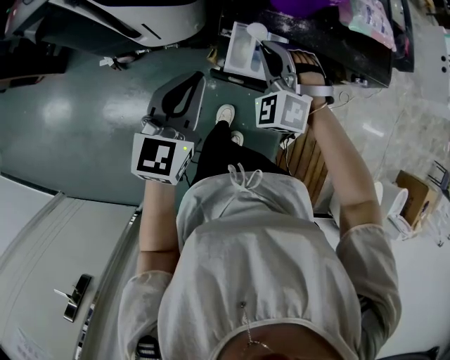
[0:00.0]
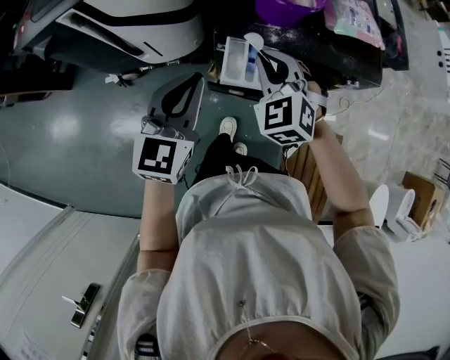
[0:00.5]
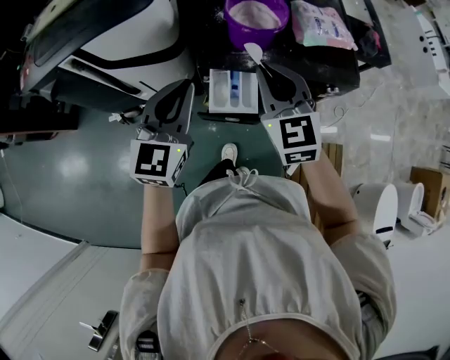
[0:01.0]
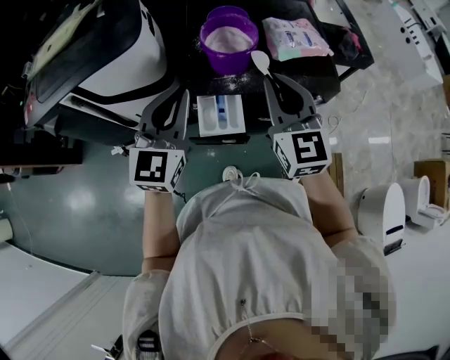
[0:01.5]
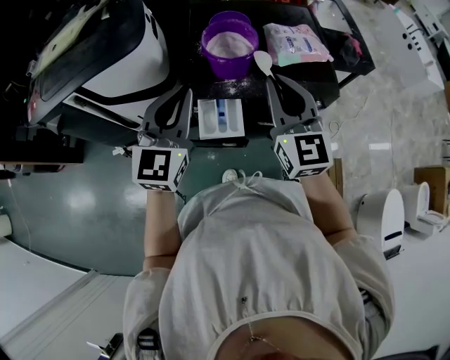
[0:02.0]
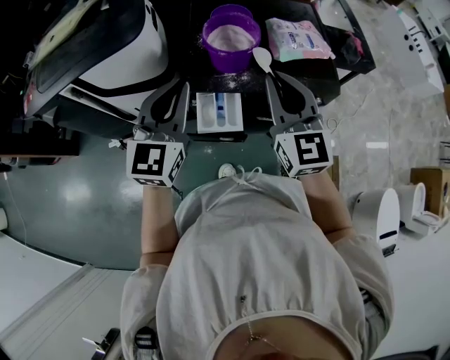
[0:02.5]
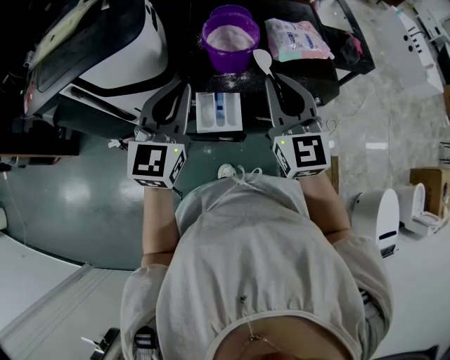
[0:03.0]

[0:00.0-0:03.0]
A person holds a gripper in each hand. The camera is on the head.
0:00.0 to 0:01.5: The left gripper is displaced upward, forward and to the right by approximately 20 cm, and swivels approximately 20 degrees, while the right gripper heads upward and to the right, covering roughly 25 cm, and twists some 60 degrees clockwise, seen from behind.
0:01.5 to 0:03.0: The grippers stay close to where they were, moving slightly.

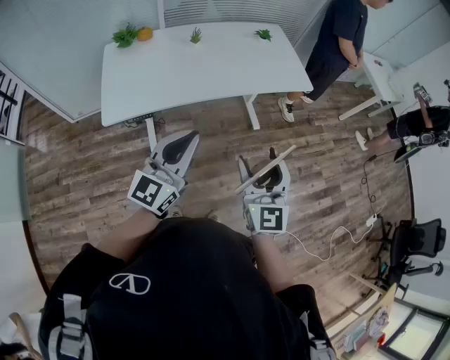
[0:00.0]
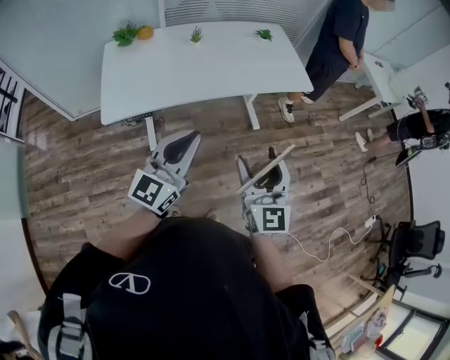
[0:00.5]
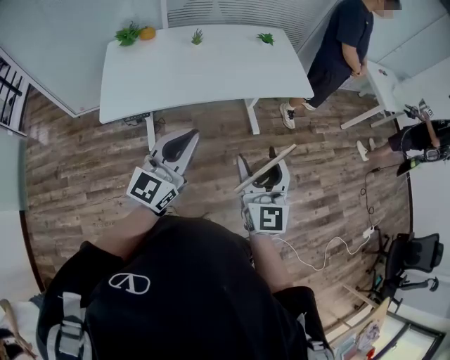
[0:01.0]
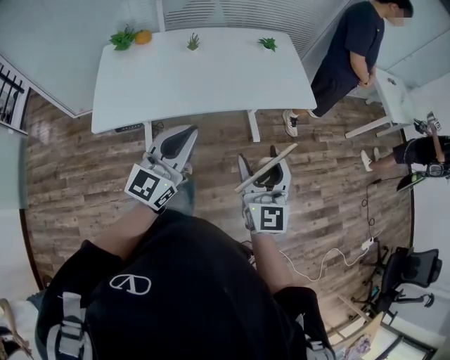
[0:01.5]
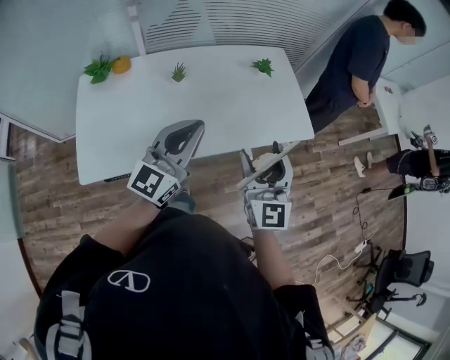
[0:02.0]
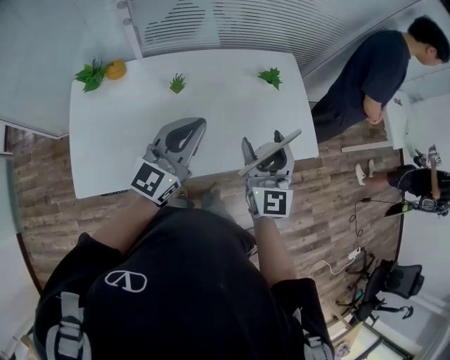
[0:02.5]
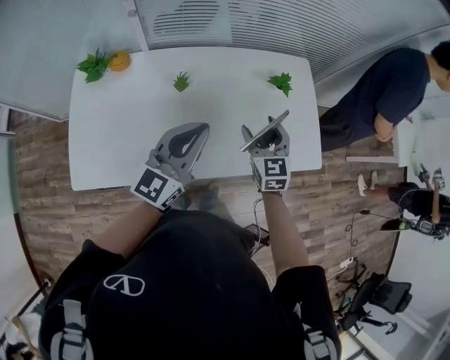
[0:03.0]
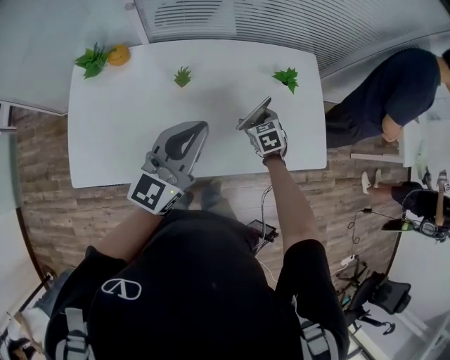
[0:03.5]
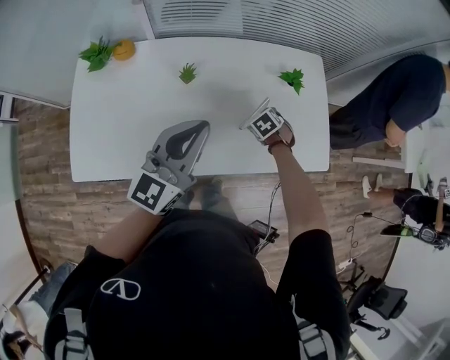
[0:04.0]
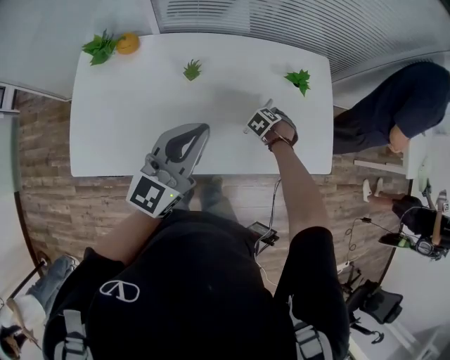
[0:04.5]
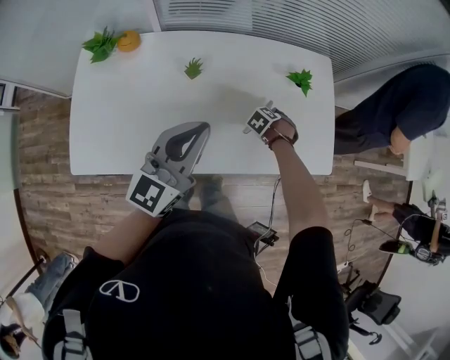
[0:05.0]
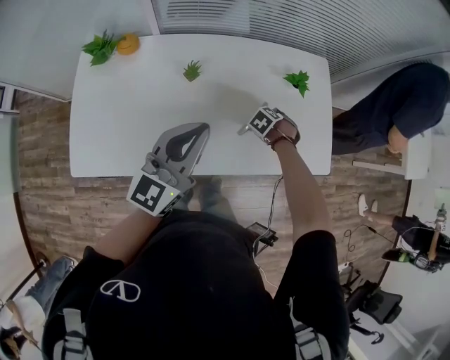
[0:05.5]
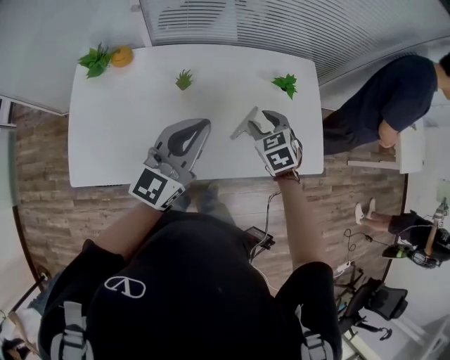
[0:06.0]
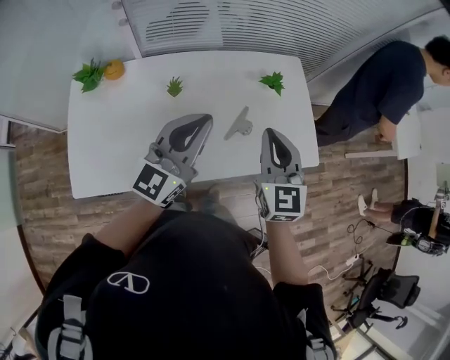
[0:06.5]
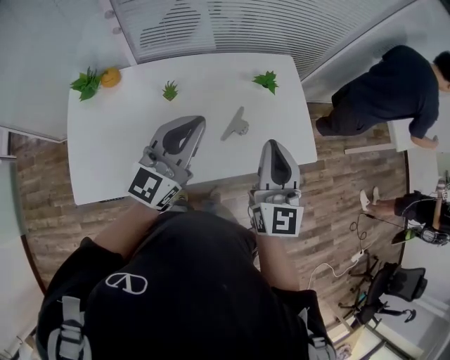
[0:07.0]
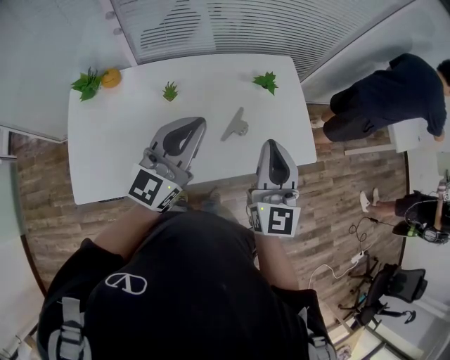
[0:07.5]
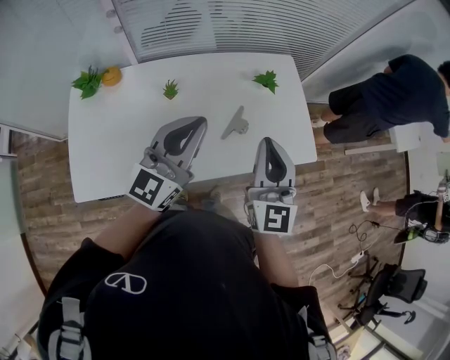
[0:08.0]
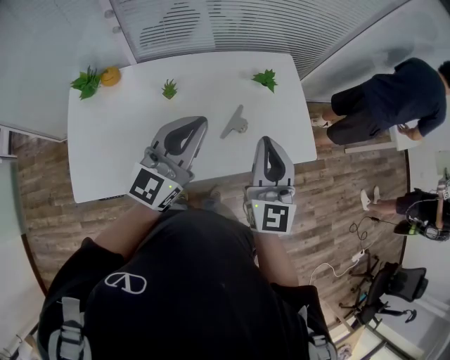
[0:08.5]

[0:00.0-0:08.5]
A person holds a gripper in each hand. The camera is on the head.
0:00.0 to 0:02.0: Both grippers travel together forward, approximately 35 cm.
0:02.0 to 0:04.0: The left gripper changes place by approximately 15 cm; the right gripper travels downward by about 35 cm, and points its fingers approximately 80 degrees further downward.
0:04.0 to 0:06.5: The right gripper moves upward, roughly 35 cm, tips its fingers upward by some 70 degrees, and closes up.
0:06.5 to 0:08.5: The right gripper changes place by about 5 cm.

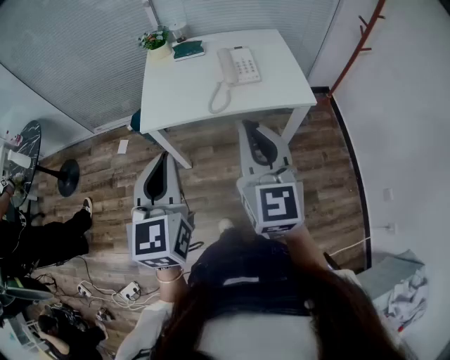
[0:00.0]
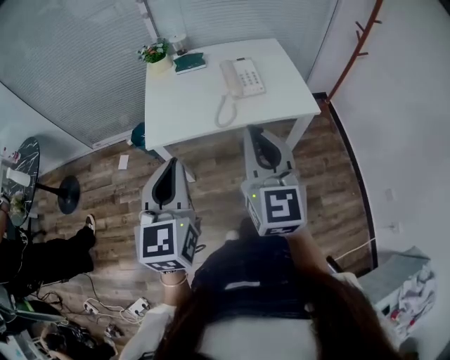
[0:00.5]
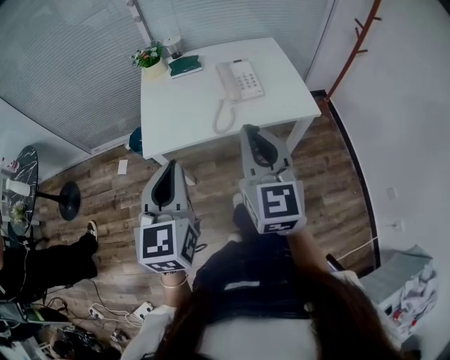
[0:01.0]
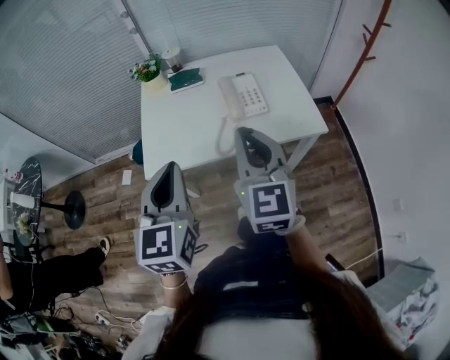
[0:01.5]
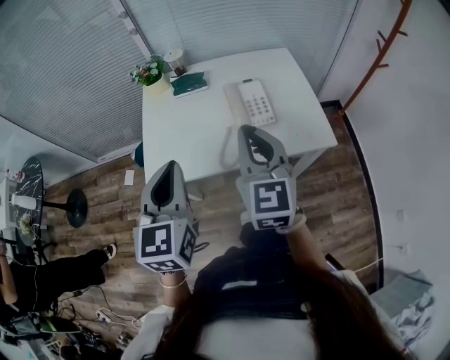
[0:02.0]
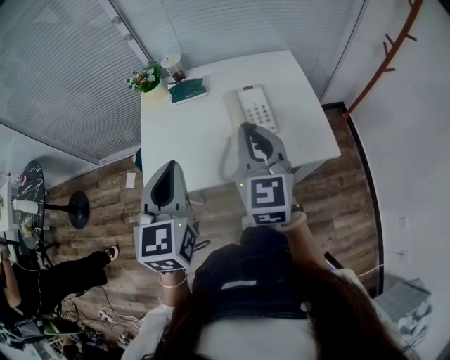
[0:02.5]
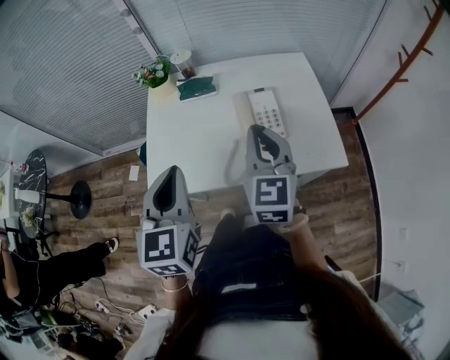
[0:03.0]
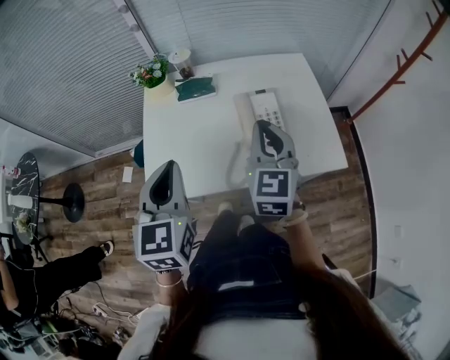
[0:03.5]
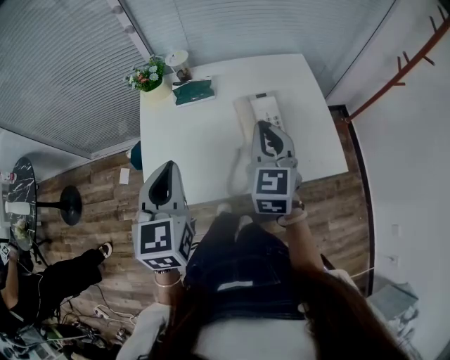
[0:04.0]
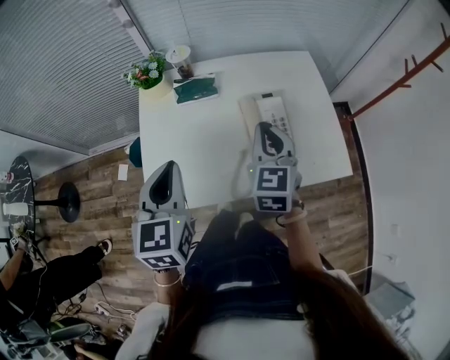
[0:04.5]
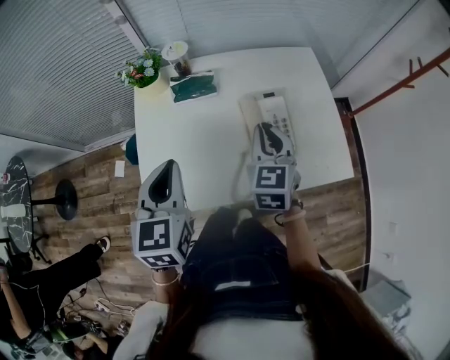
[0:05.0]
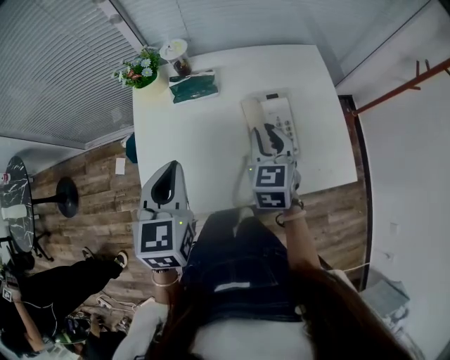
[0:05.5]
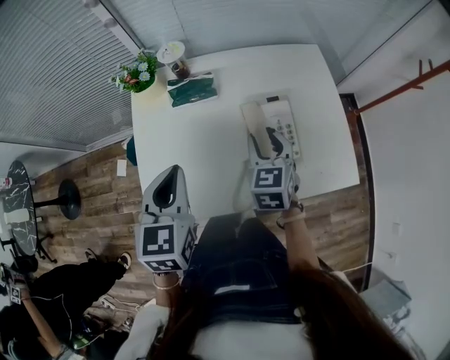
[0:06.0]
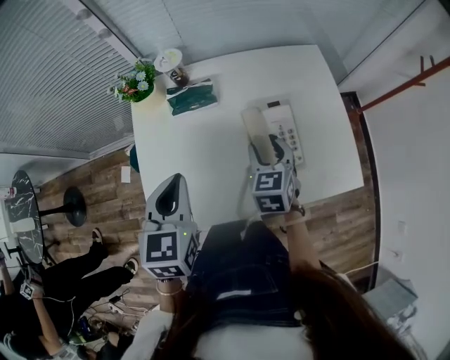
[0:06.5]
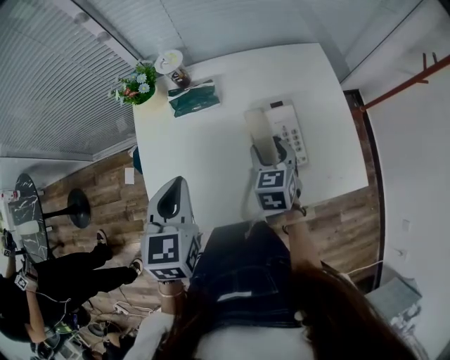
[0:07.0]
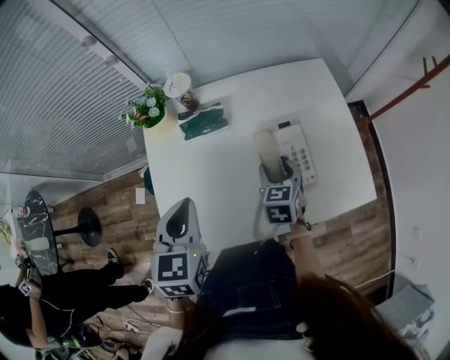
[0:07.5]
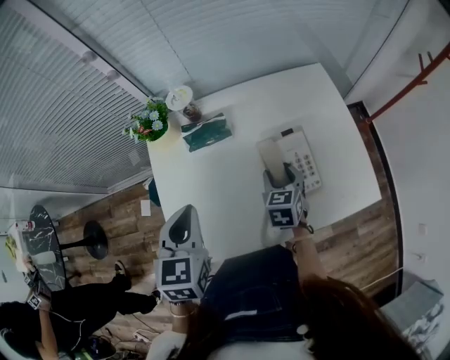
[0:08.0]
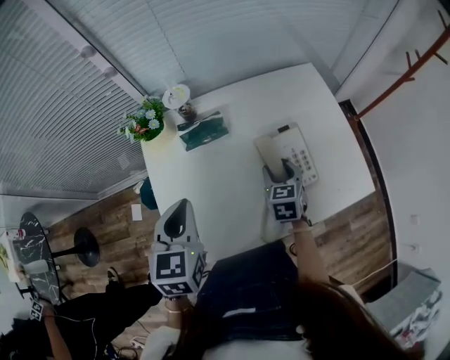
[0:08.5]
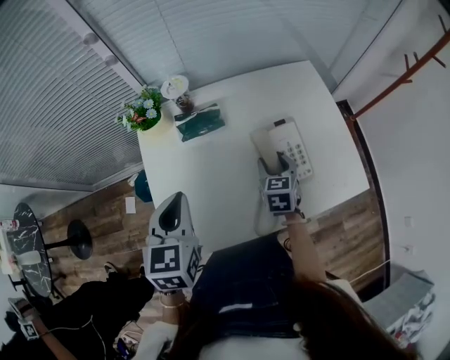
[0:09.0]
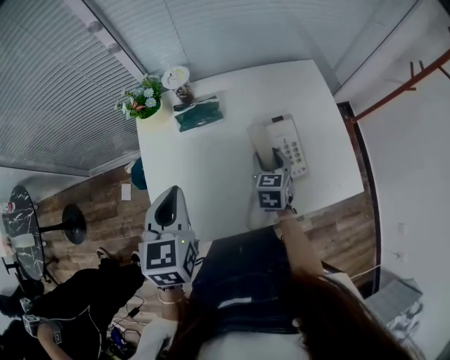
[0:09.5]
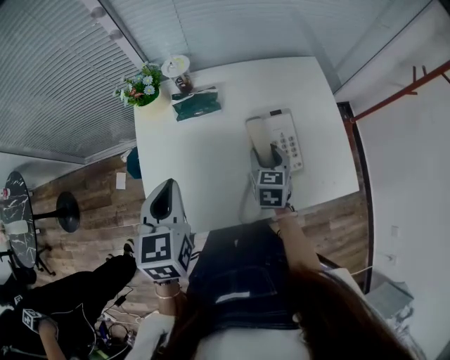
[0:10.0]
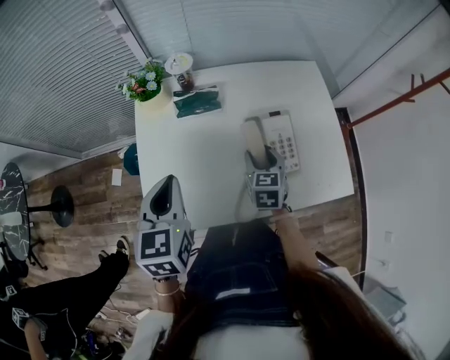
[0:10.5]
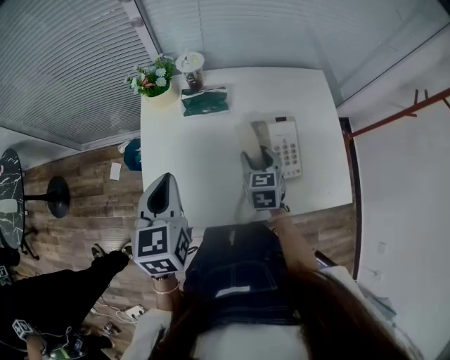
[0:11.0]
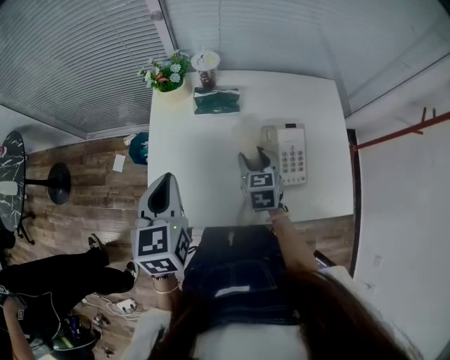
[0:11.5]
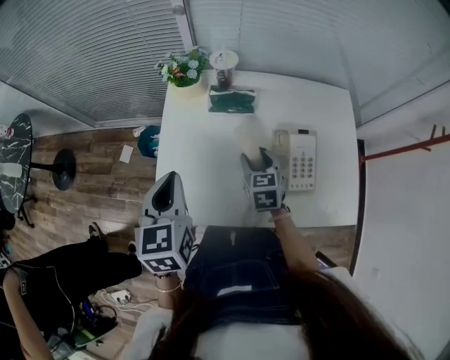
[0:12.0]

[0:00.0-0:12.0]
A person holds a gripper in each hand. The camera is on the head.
0:00.0 to 0:02.0: The two grippers go approximately 25 cm forward.
0:02.0 to 0:04.0: The left gripper goes approximately 15 cm forward, while the right gripper heads forward and downward, covering some 15 cm.
0:04.0 to 0:06.0: The left gripper travels forward and downward by approximately 10 cm. The right gripper travels downward and forward by approximately 15 cm, and opens.
0:06.0 to 0:08.0: The right gripper heads downward, covering some 10 cm.
0:08.0 to 0:10.0: The grippers stay close to where they were, moving slightly.
0:10.0 to 0:12.0: The right gripper heads to the left, covering some 10 cm, and swivels some 20 degrees, while the left gripper moves to the left, roughly 5 cm.

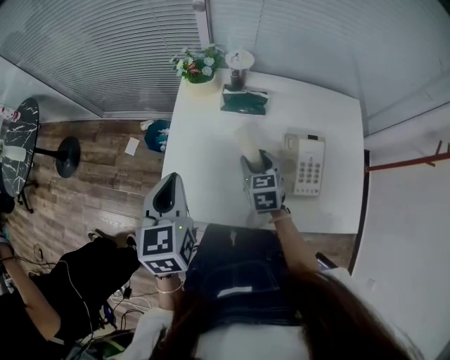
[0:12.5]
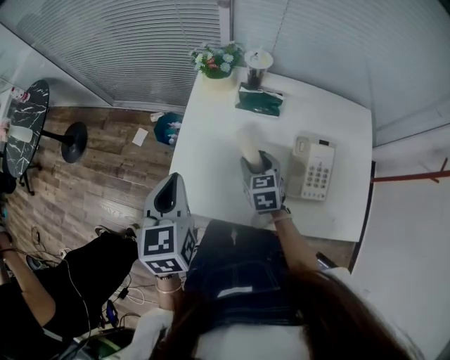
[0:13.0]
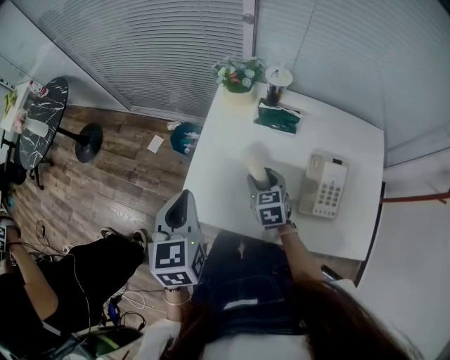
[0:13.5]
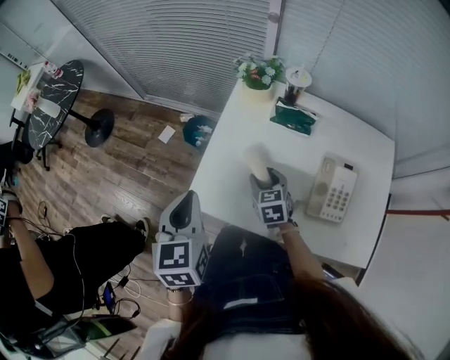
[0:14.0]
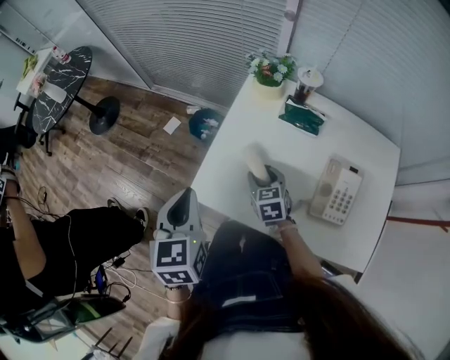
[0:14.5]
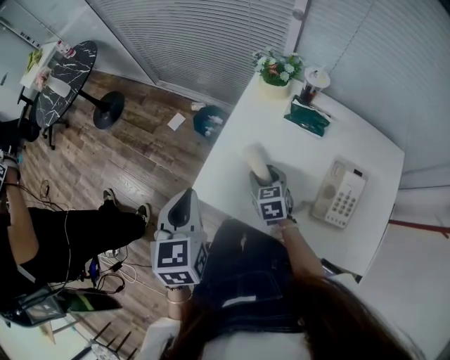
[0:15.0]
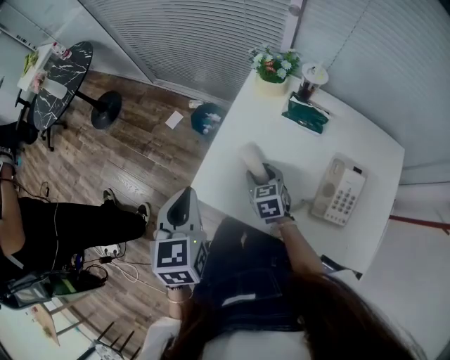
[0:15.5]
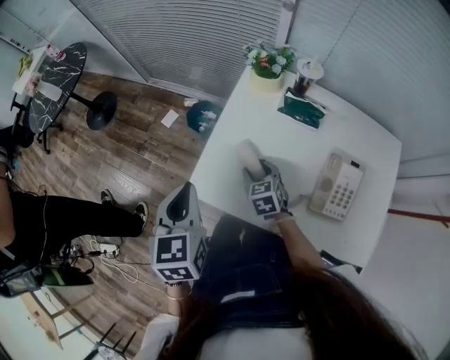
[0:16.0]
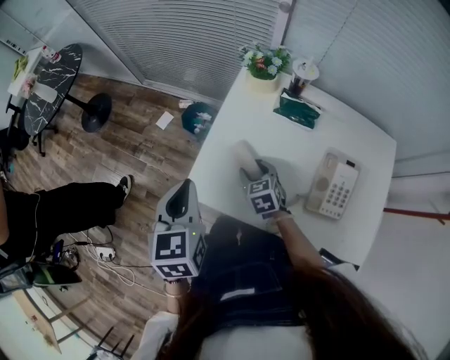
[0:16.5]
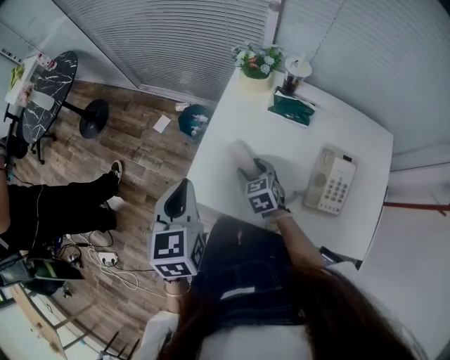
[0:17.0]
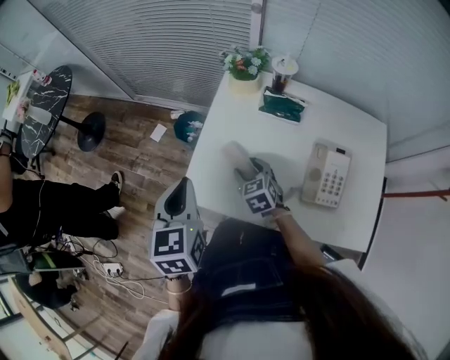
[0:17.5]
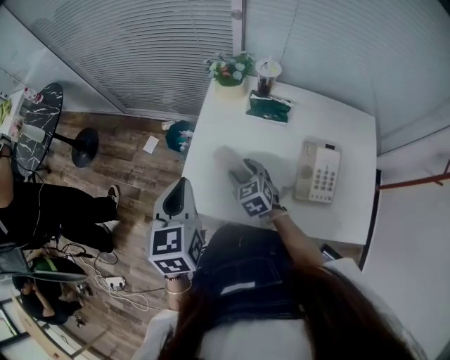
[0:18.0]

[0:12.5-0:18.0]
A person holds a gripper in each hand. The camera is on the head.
0:12.5 to 0:14.5: The right gripper shifts some 15 cm to the left, while the left gripper goes approximately 10 cm to the left and backward.
0:14.5 to 0:18.0: The grippers stay close to where they were, moving slightly.
